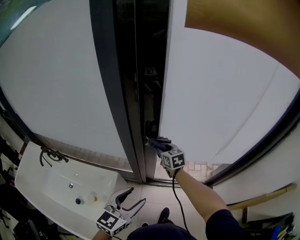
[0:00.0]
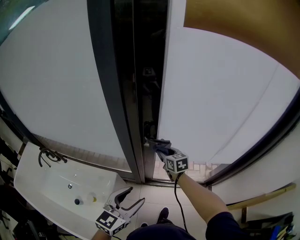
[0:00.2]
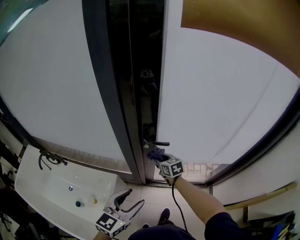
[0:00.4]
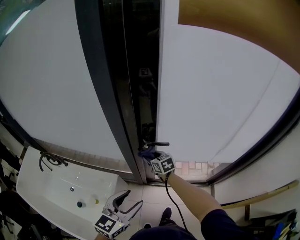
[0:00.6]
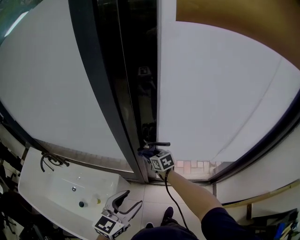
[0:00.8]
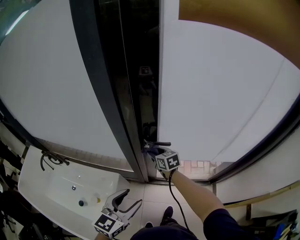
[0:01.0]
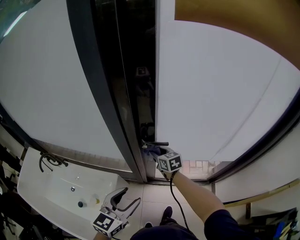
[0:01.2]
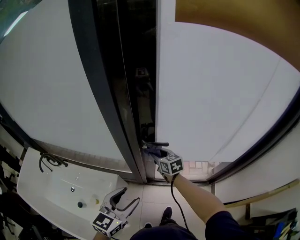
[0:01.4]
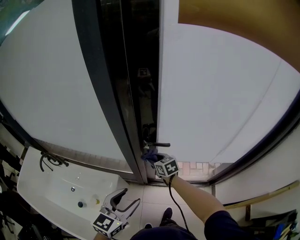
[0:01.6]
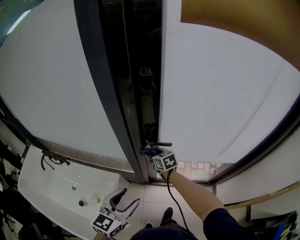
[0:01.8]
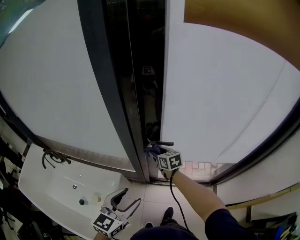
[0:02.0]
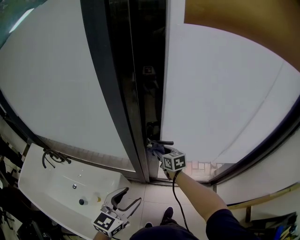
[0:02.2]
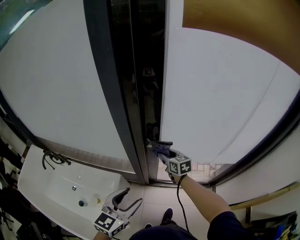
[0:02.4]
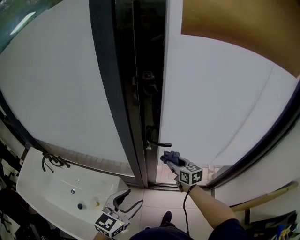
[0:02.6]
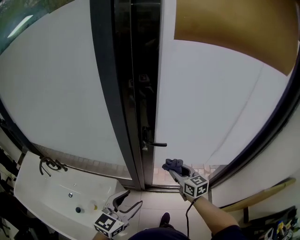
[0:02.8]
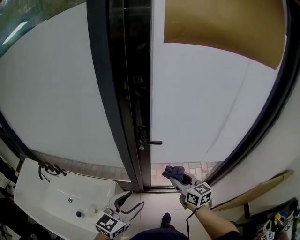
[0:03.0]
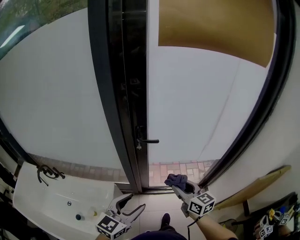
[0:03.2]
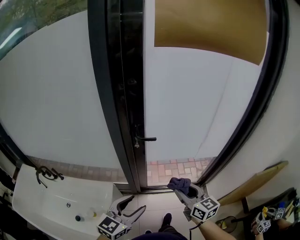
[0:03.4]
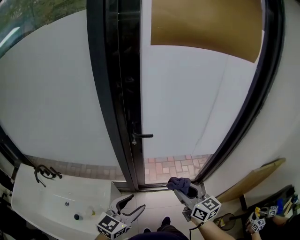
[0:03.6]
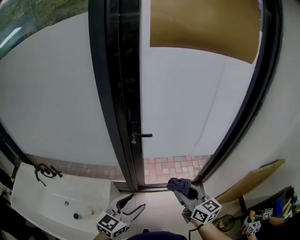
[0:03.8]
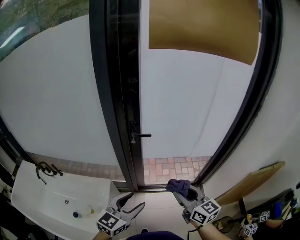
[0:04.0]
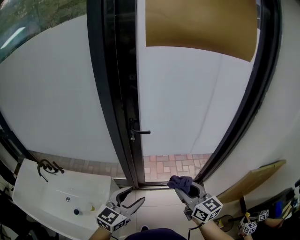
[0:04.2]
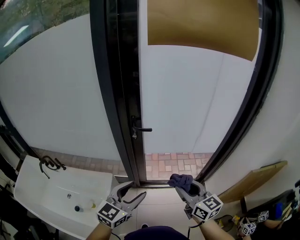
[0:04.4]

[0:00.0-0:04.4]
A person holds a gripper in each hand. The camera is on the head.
0:00.0 to 0:01.4: The right gripper reaches approximately 5 cm to the left, then returns.
0:01.4 to 0:03.0: The left gripper heads backward, covering about 5 cm. Meanwhile the right gripper shifts approximately 25 cm backward, upward and to the right.
0:03.0 to 0:04.4: The left gripper shifts about 10 cm backward and to the right; the right gripper is displaced backward, to the right and upward by roughly 20 cm.

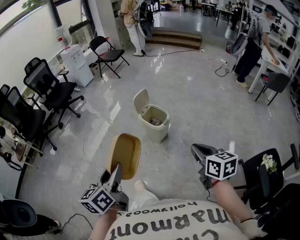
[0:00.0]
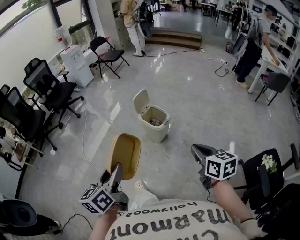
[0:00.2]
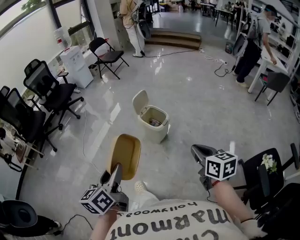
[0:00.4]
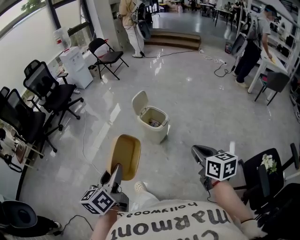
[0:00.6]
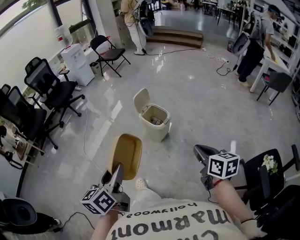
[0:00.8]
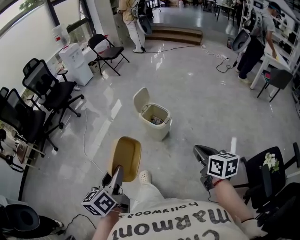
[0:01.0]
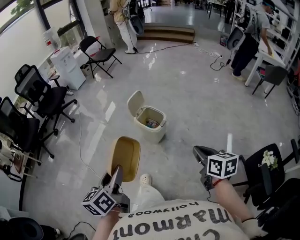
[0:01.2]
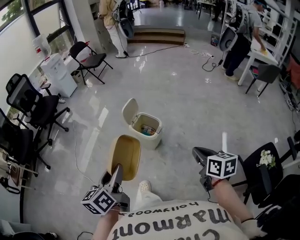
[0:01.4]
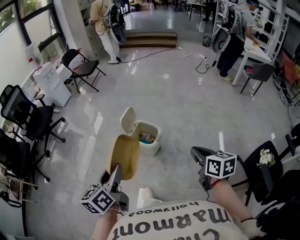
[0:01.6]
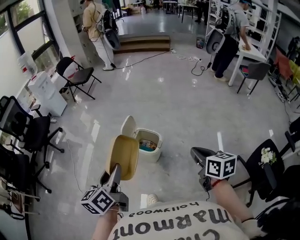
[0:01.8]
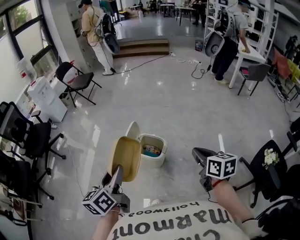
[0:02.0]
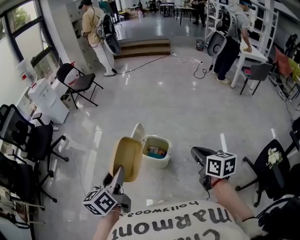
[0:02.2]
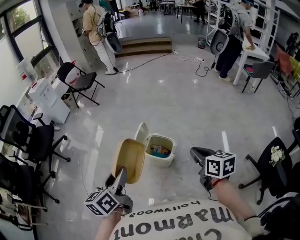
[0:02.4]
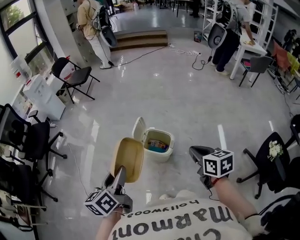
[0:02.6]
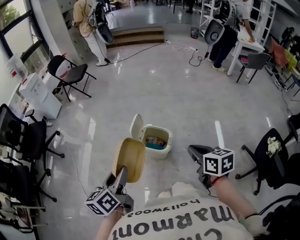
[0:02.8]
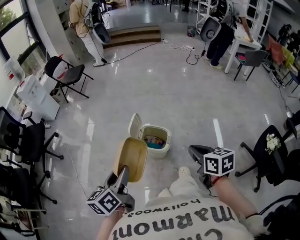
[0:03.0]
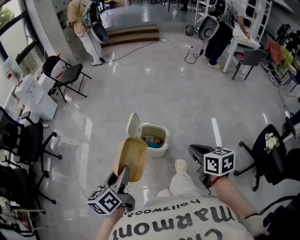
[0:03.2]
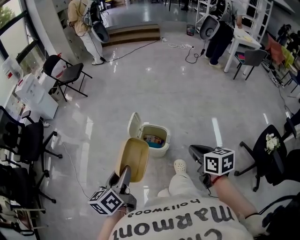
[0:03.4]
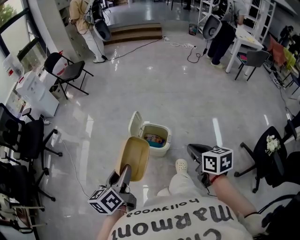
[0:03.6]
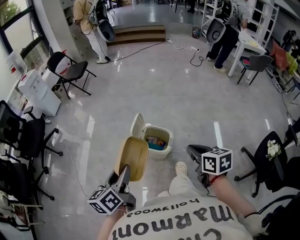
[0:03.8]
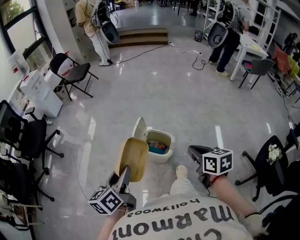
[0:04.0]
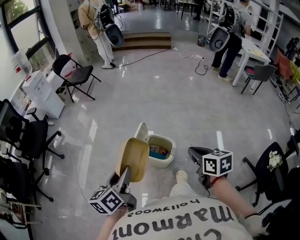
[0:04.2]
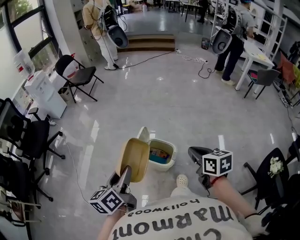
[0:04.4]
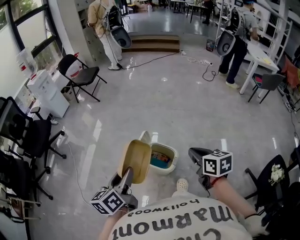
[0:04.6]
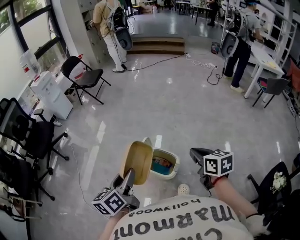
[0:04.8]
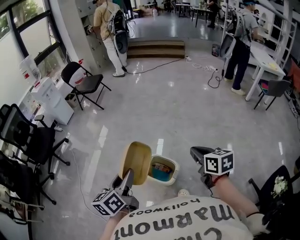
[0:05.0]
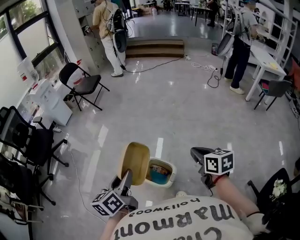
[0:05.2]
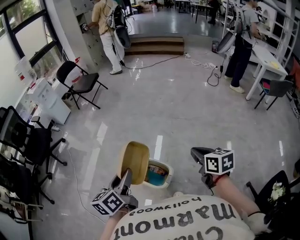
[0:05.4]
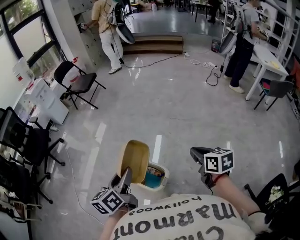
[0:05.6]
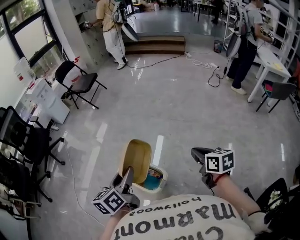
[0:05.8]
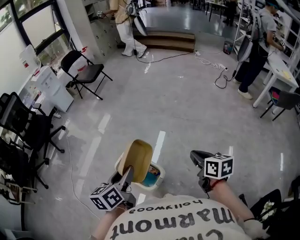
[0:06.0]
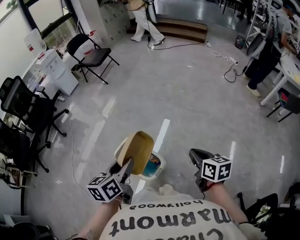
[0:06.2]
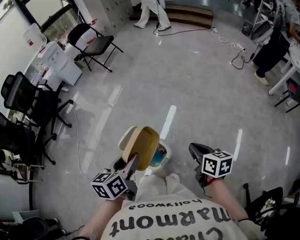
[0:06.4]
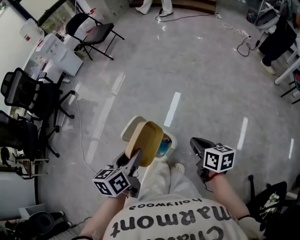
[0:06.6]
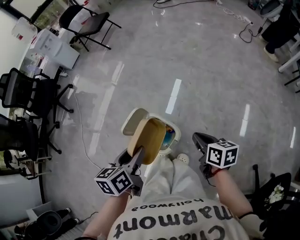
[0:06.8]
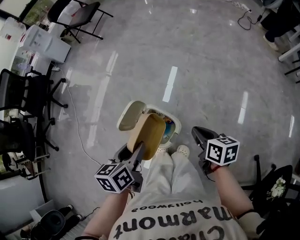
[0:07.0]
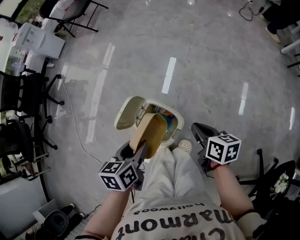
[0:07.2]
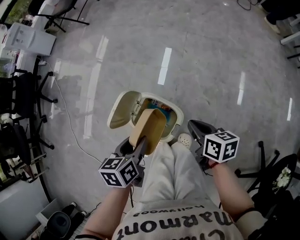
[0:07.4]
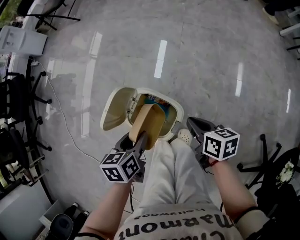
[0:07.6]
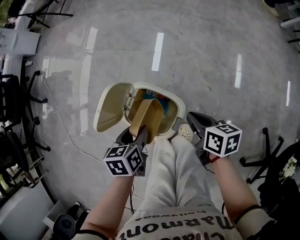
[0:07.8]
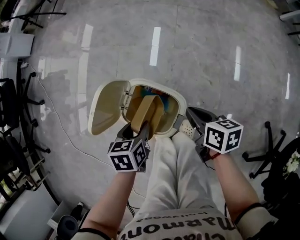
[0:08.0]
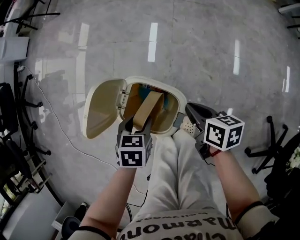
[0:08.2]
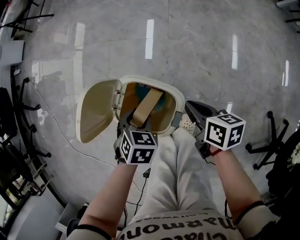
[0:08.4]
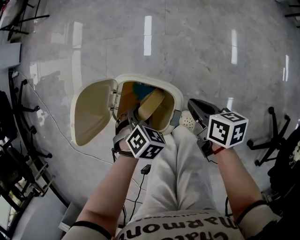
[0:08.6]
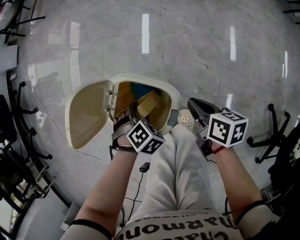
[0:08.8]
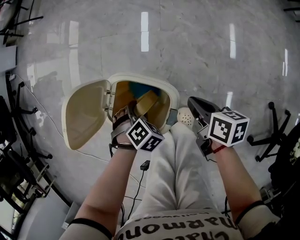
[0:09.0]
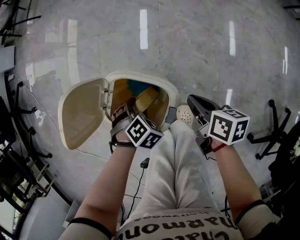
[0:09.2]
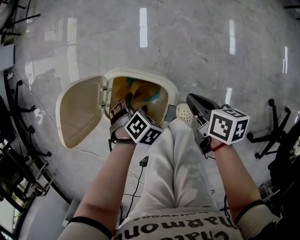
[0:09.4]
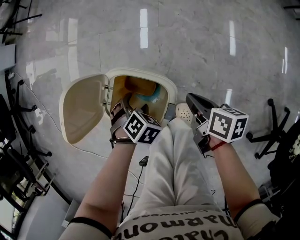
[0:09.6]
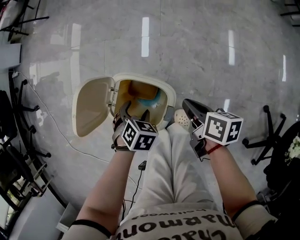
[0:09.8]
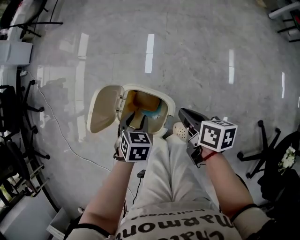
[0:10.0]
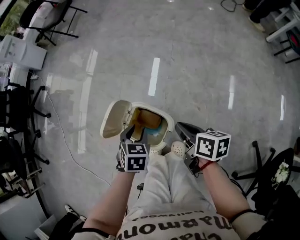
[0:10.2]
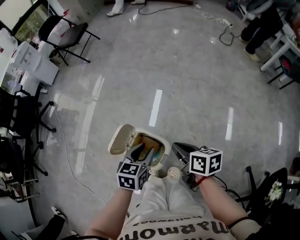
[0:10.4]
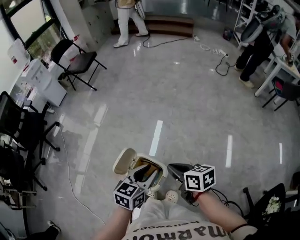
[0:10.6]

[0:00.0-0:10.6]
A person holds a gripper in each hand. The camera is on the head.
0:00.0 to 0:01.6: The right gripper is displaced forward by roughly 10 cm. Meanwhile the left gripper shifts roughly 20 cm forward.
0:01.6 to 0:03.0: The left gripper shifts roughly 15 cm forward and to the left; the right gripper shifts approximately 15 cm to the left and forward.
0:03.0 to 0:04.6: Both grippers move forward, roughly 10 cm.
0:04.6 to 0:06.0: The grippers both shift to the right and forward by about 25 cm.
0:06.0 to 0:07.6: The right gripper goes roughly 30 cm downward and to the left, and rotates about 20 degrees. Meanwhile the left gripper shifts roughly 30 cm downward, and tips its fingers downward by approximately 30 degrees.
0:07.6 to 0:09.0: The right gripper is displaced downward by some 10 cm, while the left gripper heads downward, covering about 20 cm, and rolls clockwise, seen from behind, by roughly 70 degrees.
0:09.0 to 0:10.6: The grippers both shift upward by approximately 35 cm. The right gripper turns by some 30 degrees. The left gripper tilts its fingers approximately 50 degrees upward.

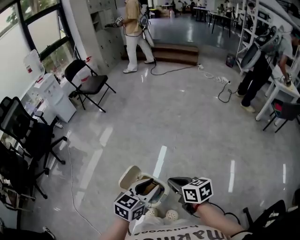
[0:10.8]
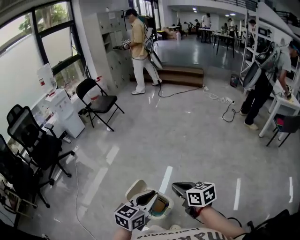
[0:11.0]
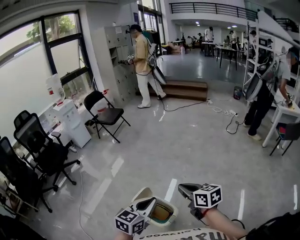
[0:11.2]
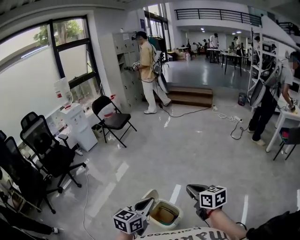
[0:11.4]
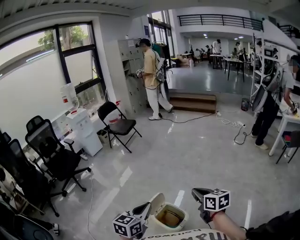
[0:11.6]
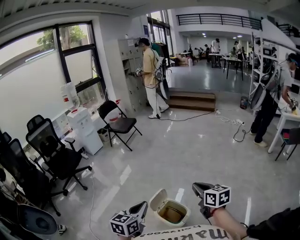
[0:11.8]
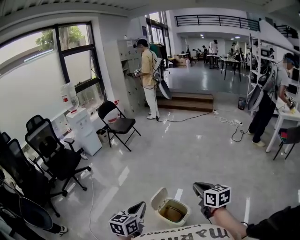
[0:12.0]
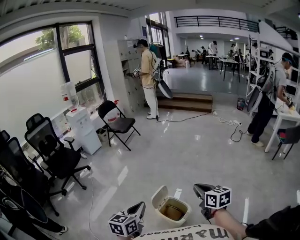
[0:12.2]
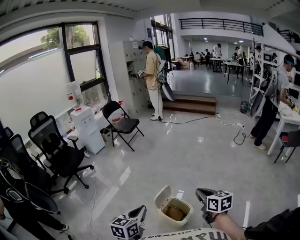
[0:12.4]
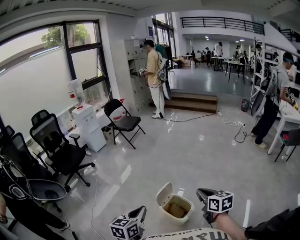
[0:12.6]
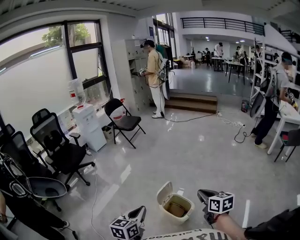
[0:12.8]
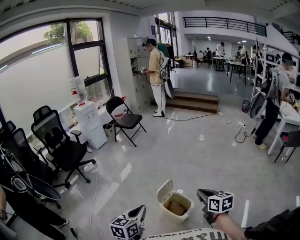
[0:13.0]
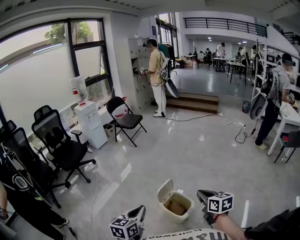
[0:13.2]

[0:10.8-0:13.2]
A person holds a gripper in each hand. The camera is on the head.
0:10.8 to 0:12.0: The left gripper is displaced to the left, upward and backward by about 25 cm, changes its angle by some 20 degrees, and closes its fingers; the right gripper heads upward, covering roughly 15 cm, and rotates about 20 degrees.
0:12.0 to 0:13.2: The left gripper heads backward and to the left, covering approximately 10 cm; the right gripper moves backward, about 10 cm.

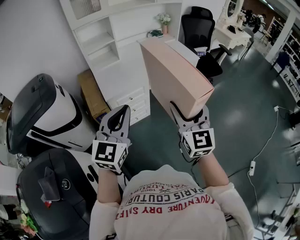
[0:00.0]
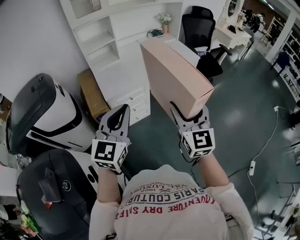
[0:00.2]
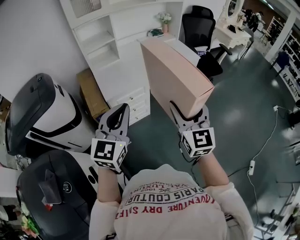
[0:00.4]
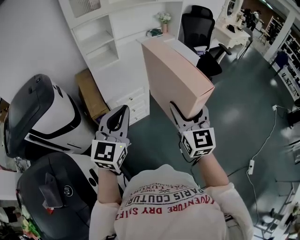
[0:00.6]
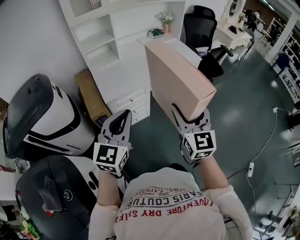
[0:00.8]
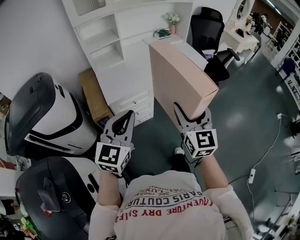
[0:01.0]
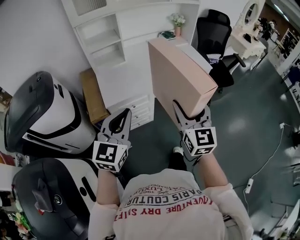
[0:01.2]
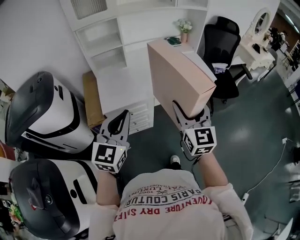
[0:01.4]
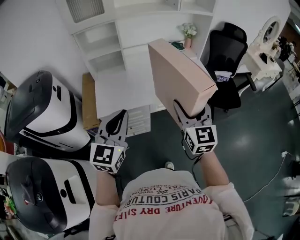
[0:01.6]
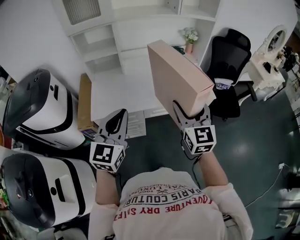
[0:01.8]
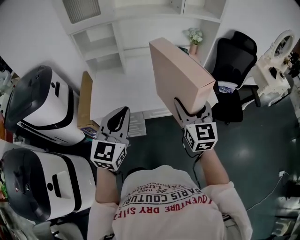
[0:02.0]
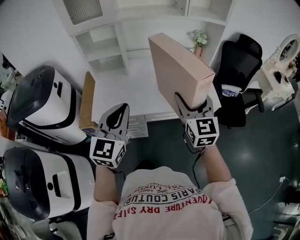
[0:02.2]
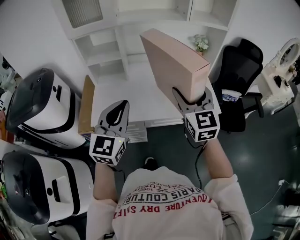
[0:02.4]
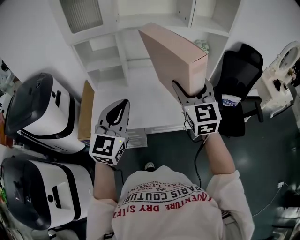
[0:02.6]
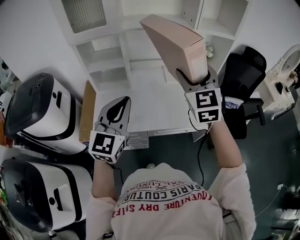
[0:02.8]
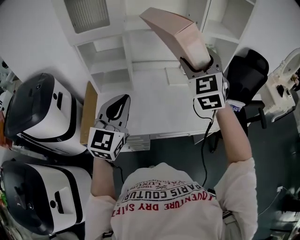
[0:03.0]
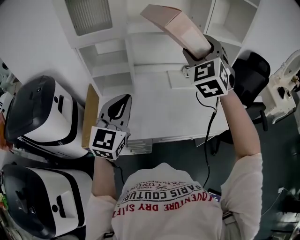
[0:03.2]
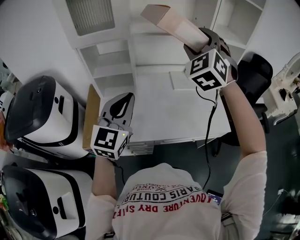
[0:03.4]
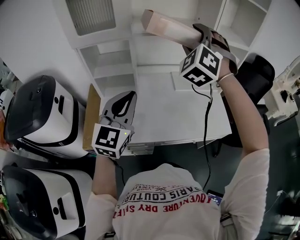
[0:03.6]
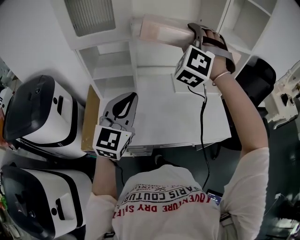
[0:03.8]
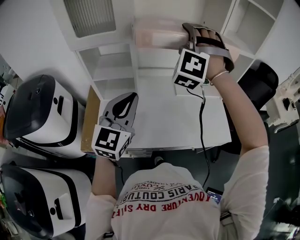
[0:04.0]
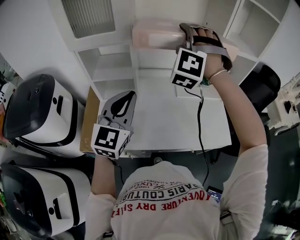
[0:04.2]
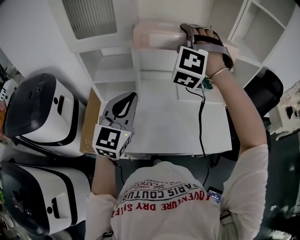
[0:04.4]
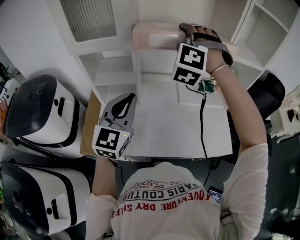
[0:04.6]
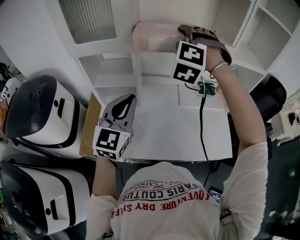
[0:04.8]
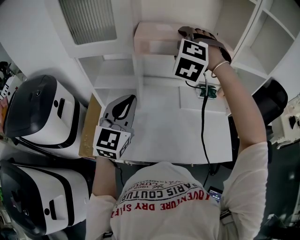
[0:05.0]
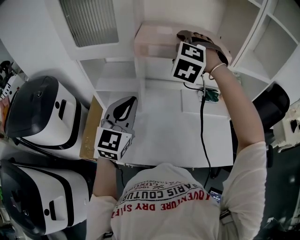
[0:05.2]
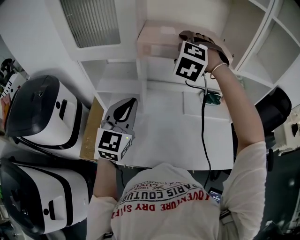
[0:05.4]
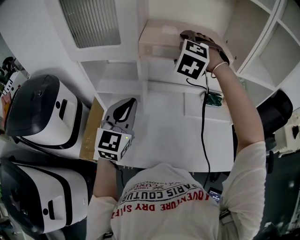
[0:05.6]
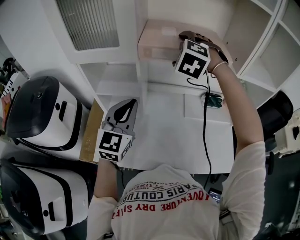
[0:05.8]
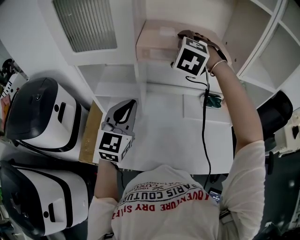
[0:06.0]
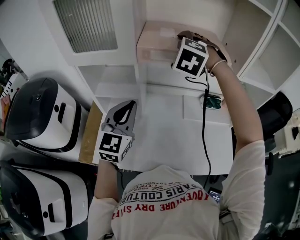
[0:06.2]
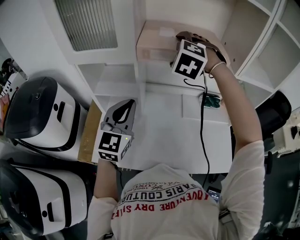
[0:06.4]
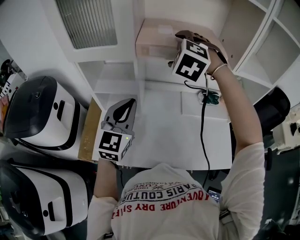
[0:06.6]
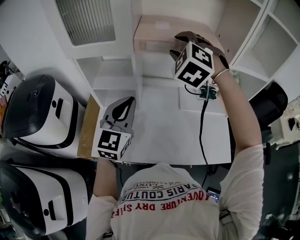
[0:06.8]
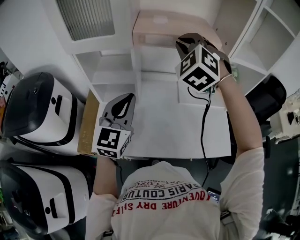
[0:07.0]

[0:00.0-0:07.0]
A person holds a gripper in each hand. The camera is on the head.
0:00.0 to 0:01.4: Both grippers travel together forward, some 20 cm.
0:01.4 to 0:02.8: Both grippers move forward, about 25 cm. The right gripper changes its angle by about 20 degrees.
0:02.8 to 0:04.2: The right gripper heads forward and to the left, covering about 20 cm, and rotates around the line of its fingers by roughly 60 degrees, counterclockwise from behind, while the left gripper travels forward by approximately 15 cm.
0:04.2 to 0:05.6: The left gripper is displaced forward by some 10 cm. Meanwhile the right gripper shifts some 15 cm forward, downward and to the left, and swivels about 30 degrees.
0:05.6 to 0:07.0: The right gripper is displaced backward by approximately 10 cm, and closes up.
